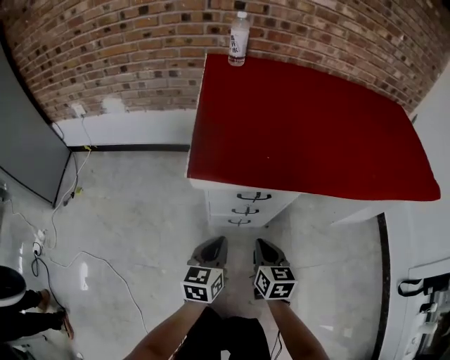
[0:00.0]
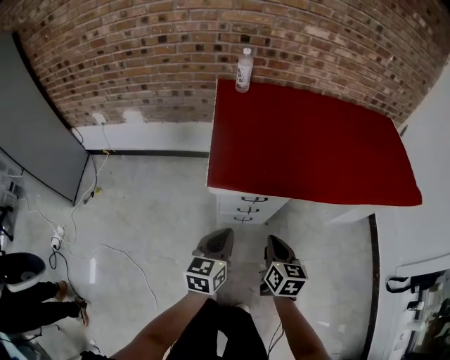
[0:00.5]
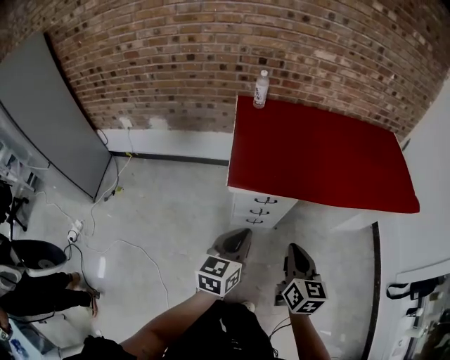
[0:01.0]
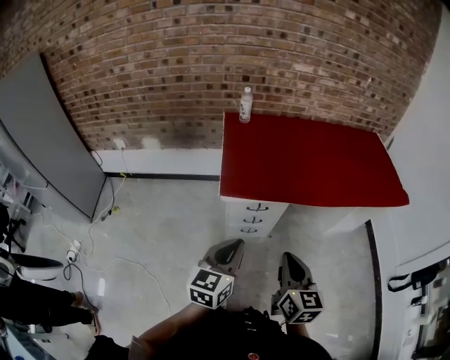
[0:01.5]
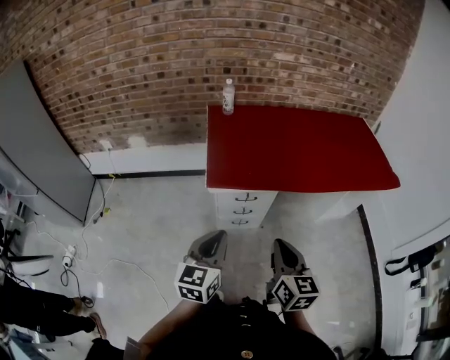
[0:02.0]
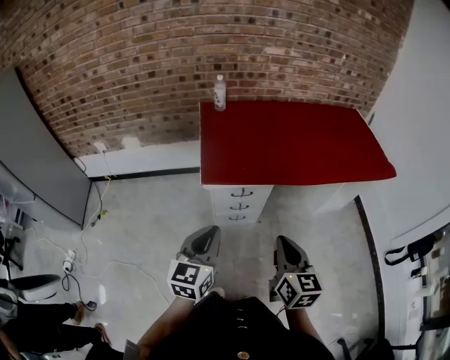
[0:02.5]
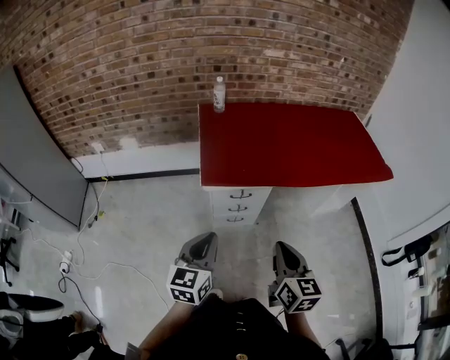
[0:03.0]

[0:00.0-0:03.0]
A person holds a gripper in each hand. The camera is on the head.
0:00.0 to 0:01.5: The right gripper is displaced upward and backward by some 40 cm. Meanwhile the left gripper is displaced upward by approximately 40 cm.
0:01.5 to 0:03.0: There are only small adjustments of the grippers.

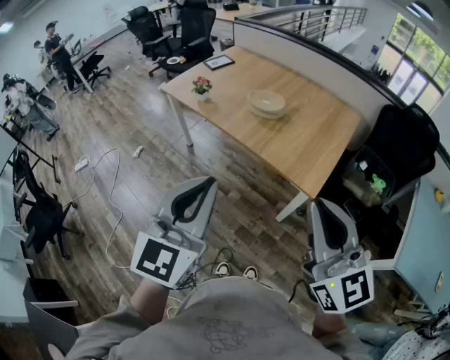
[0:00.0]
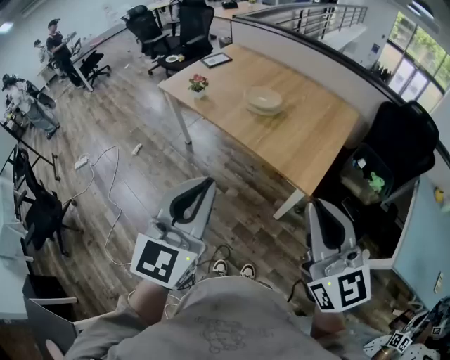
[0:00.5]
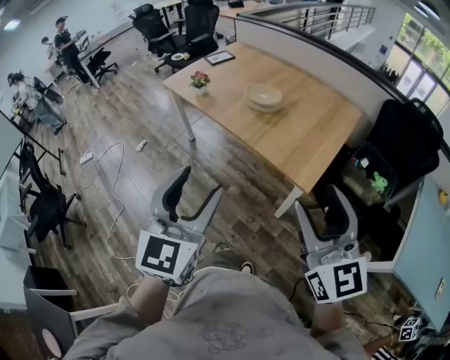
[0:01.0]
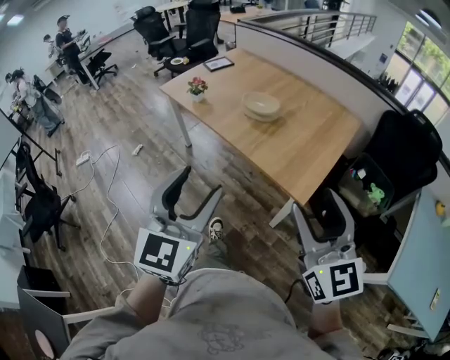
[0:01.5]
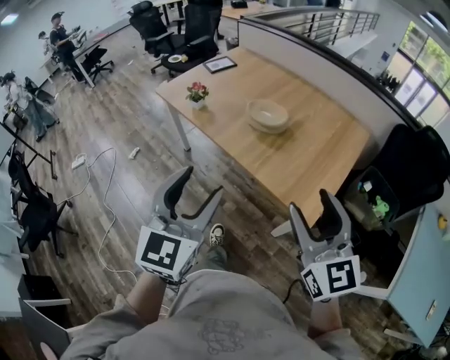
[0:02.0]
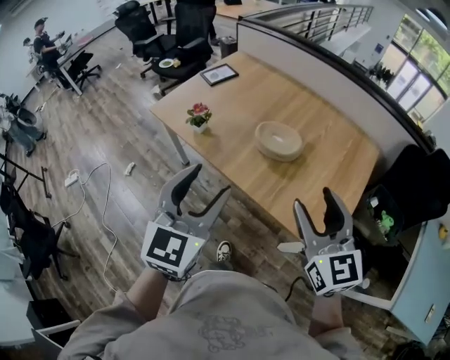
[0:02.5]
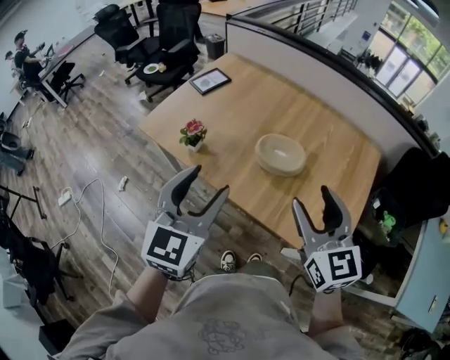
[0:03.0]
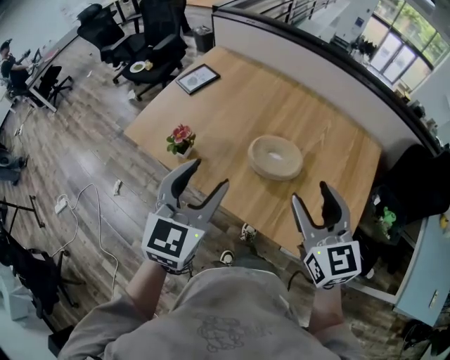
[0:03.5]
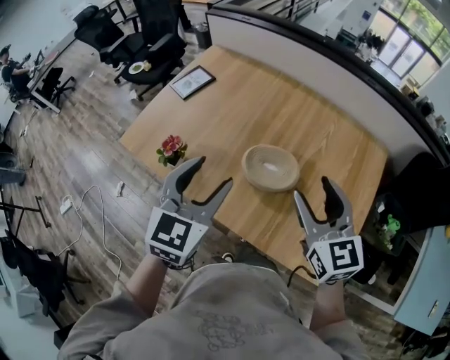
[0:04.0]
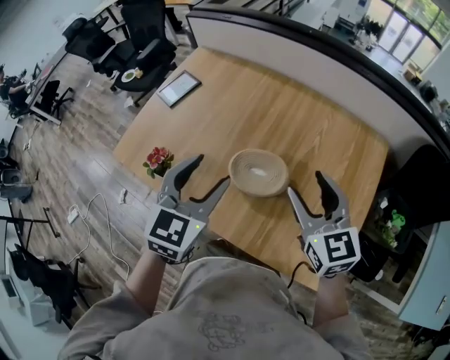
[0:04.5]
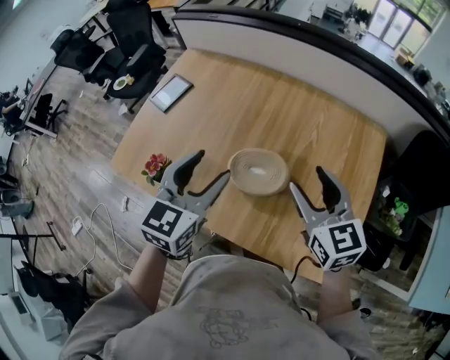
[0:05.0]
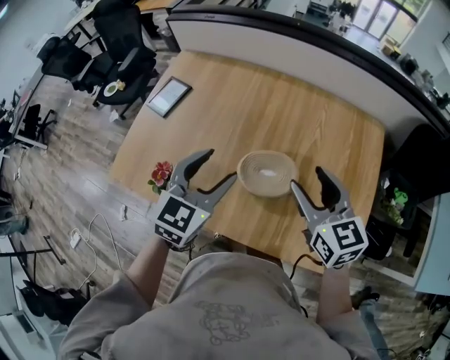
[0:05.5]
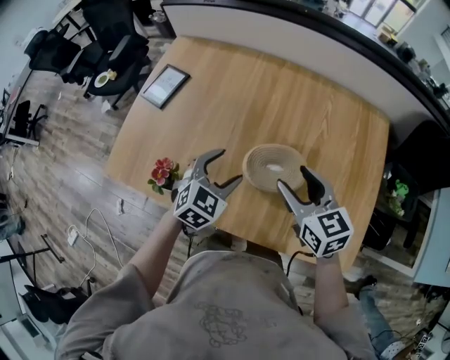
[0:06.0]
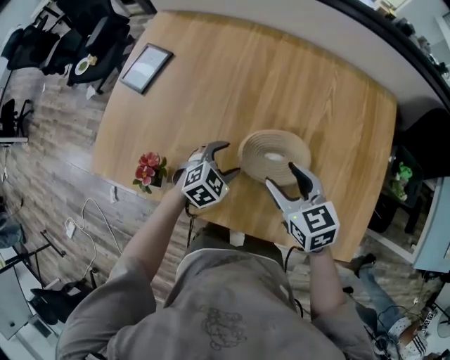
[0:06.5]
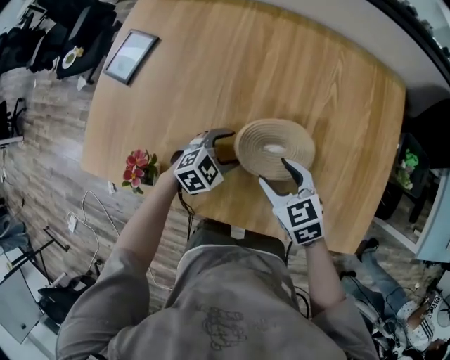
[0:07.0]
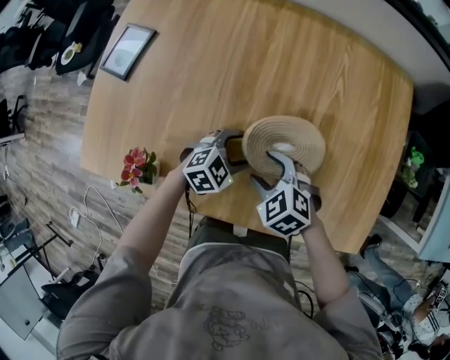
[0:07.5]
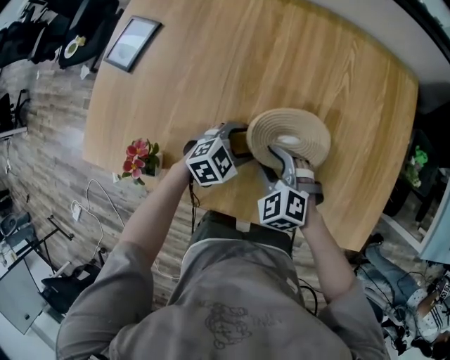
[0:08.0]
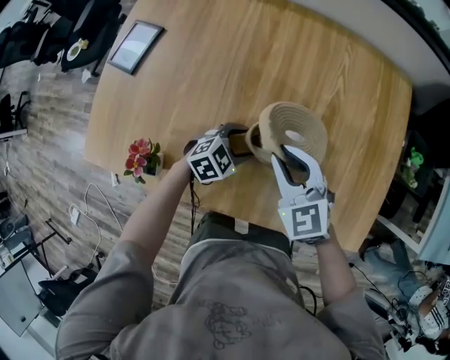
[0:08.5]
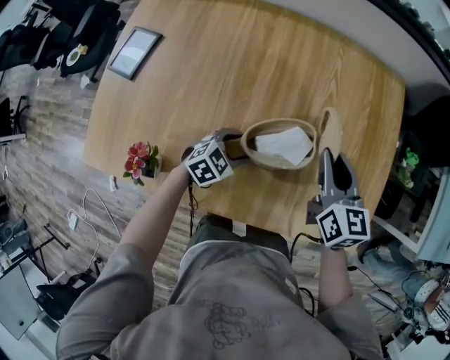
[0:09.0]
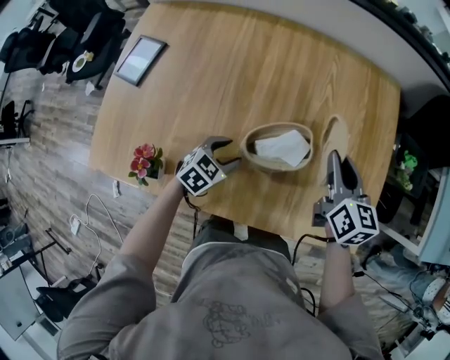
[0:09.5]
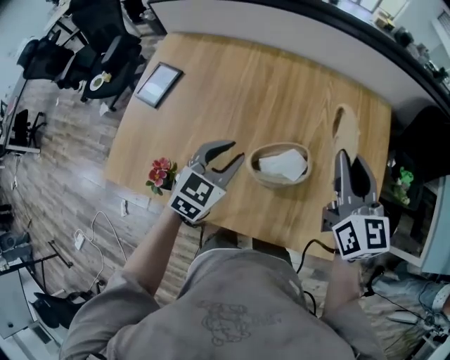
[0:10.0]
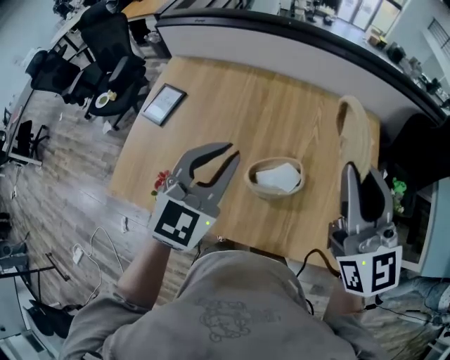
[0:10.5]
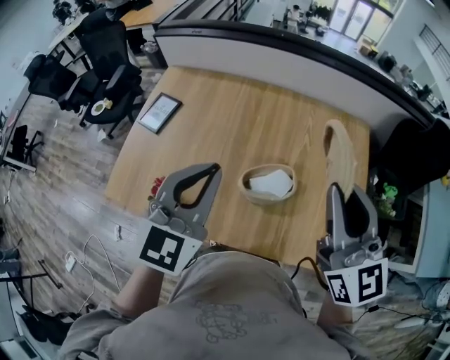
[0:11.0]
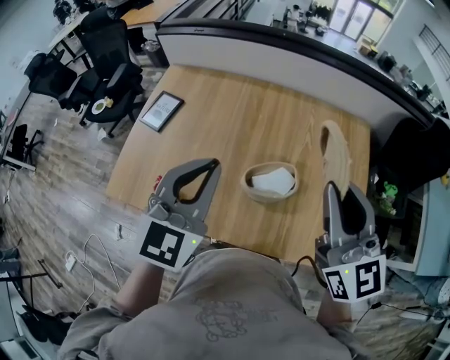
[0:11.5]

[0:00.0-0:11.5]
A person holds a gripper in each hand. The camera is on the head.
0:00.0 to 0:02.0: The right gripper is displaced forward and downward by some 20 cm, and opens. Meanwhile the left gripper heads forward, covering roughly 15 cm, and opens its fingers.
0:02.0 to 0:04.0: The two grippers travel together, forward, some 40 cm. The left gripper turns by roughly 20 degrees.
0:04.0 to 0:06.0: The left gripper heads downward and forward, covering approximately 20 cm, and swivels about 30 degrees. The right gripper moves downward, forward and to the left, some 15 cm.
0:06.0 to 0:07.5: Both grippers travel together downward, about 20 cm. The left gripper rotates roughly 30 degrees, while the right gripper angles its fingers downward, by roughly 30 degrees.
0:07.5 to 0:09.5: The right gripper heads to the right, upward and forward, covering about 25 cm, tips its fingers upward by approximately 30 degrees, and closes.
0:09.5 to 0:11.5: The right gripper shifts some 30 cm upward and backward, and turns by about 30 degrees; the left gripper goes about 40 cm upward, tips its fingers upward by about 40 degrees, and closes up.

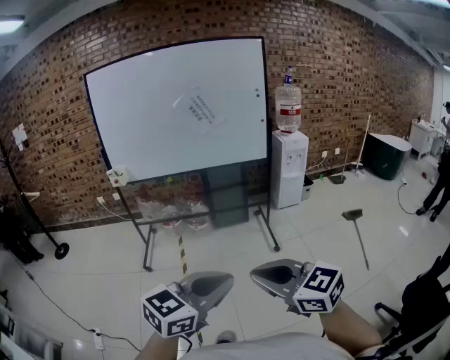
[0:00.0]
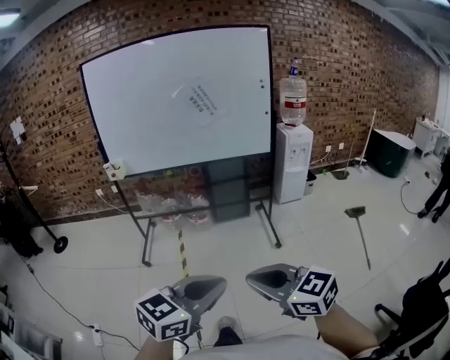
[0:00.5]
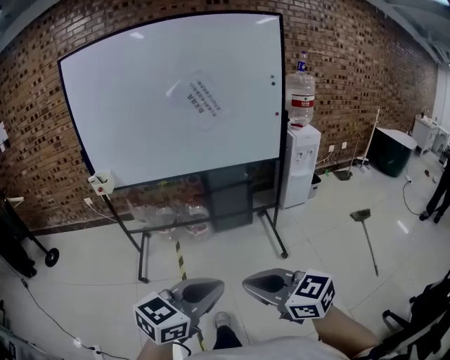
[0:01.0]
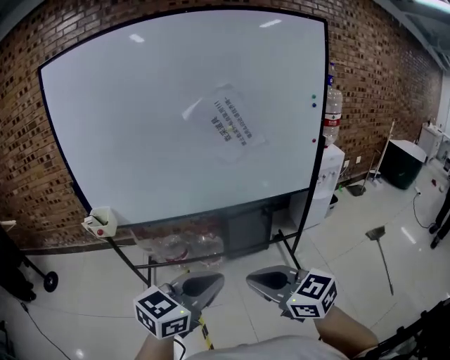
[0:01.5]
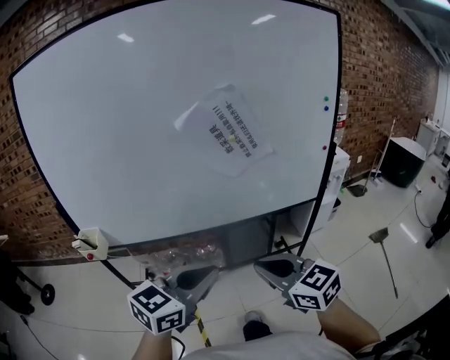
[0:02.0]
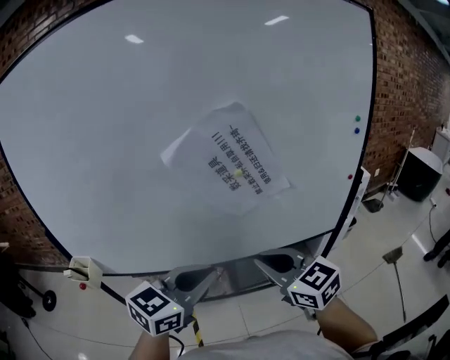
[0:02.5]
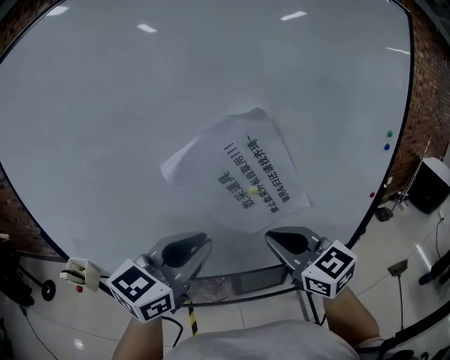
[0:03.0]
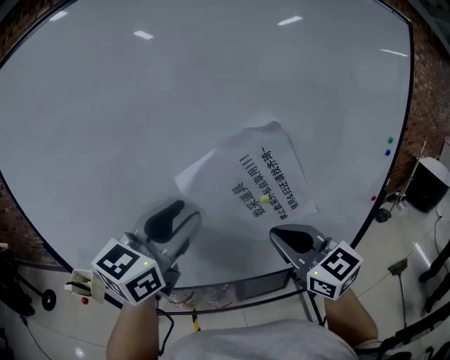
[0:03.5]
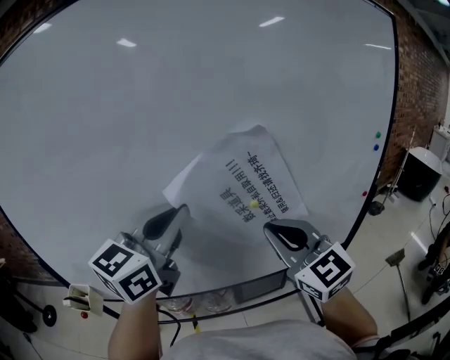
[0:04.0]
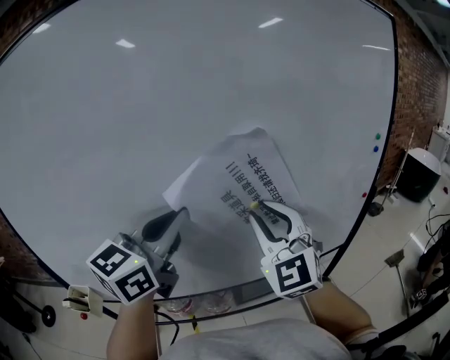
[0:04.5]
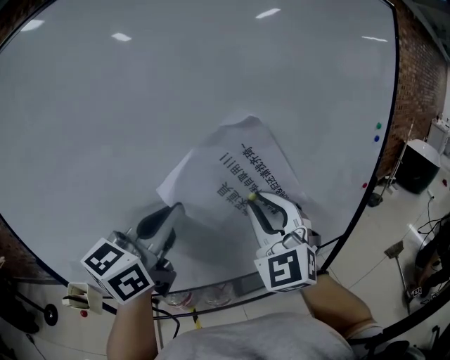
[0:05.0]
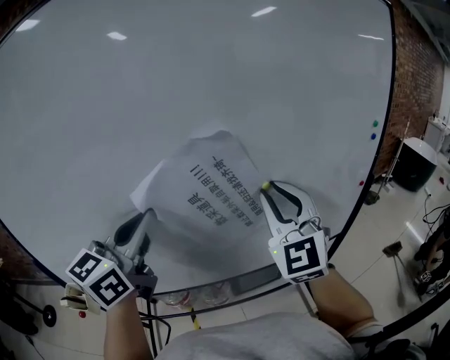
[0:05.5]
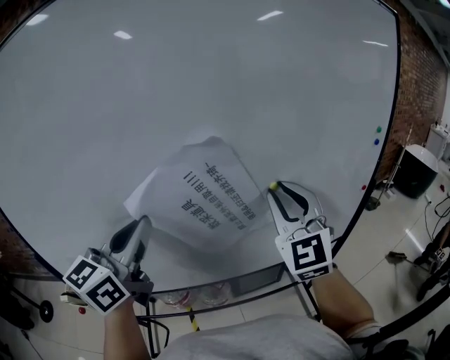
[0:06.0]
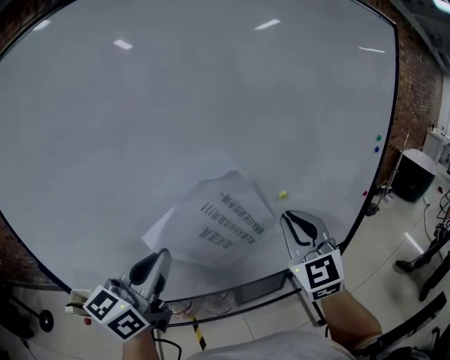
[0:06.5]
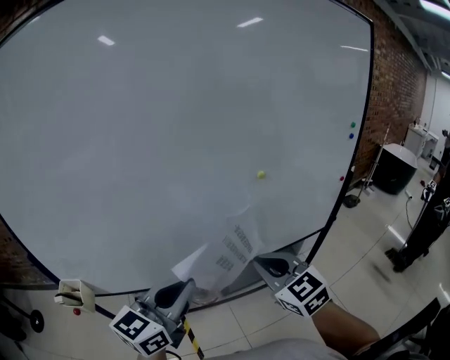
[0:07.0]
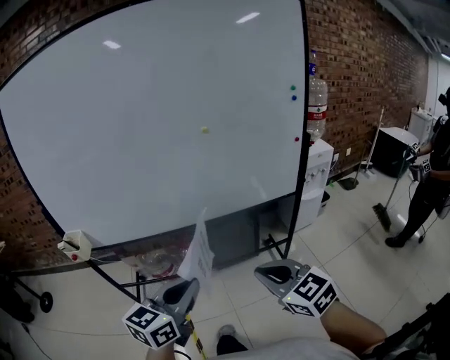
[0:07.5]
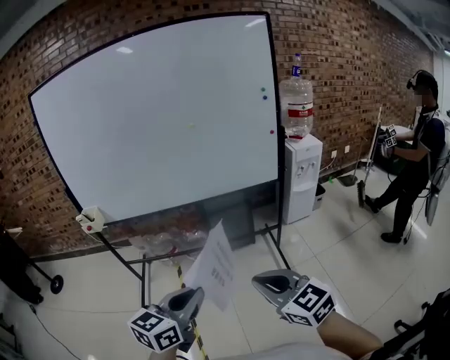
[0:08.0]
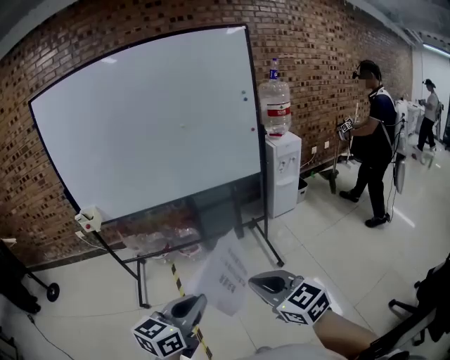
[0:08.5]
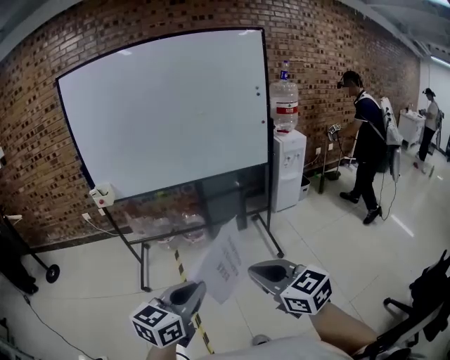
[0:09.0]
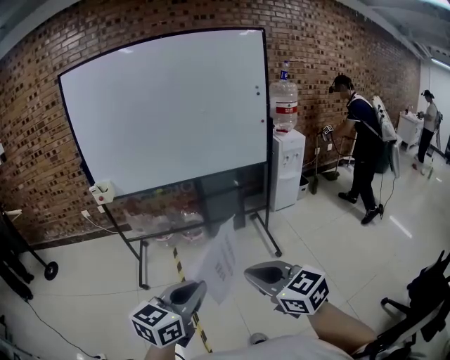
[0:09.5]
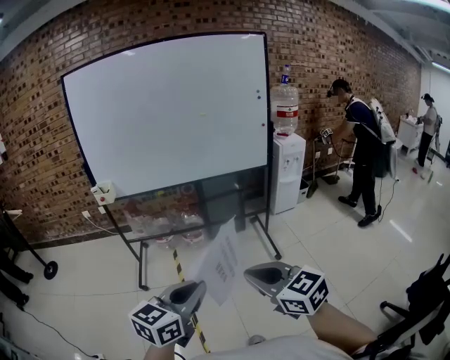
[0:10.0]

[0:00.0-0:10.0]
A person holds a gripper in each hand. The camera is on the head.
0:00.0 to 0:02.0: The two grippers travel together, forward, approximately 70 cm.
0:02.0 to 0:04.0: The two grippers go roughly 35 cm forward and upward. The left gripper rotates some 20 degrees, and opens, then closes once more. The right gripper swivels some 30 degrees.
0:04.0 to 0:06.0: The right gripper goes approximately 15 cm to the right, forward and upward, and rotates roughly 30 degrees.
0:06.0 to 0:08.0: The pair of grippers is taken backward and to the right, approximately 60 cm. The right gripper rotates approximately 50 degrees. Meanwhile the left gripper changes its angle by approximately 20 degrees.
0:08.0 to 0:10.0: The grippers both shift backward by roughly 25 cm.

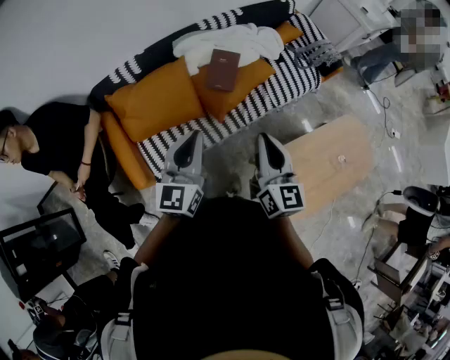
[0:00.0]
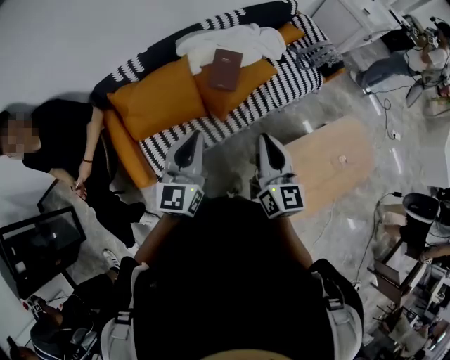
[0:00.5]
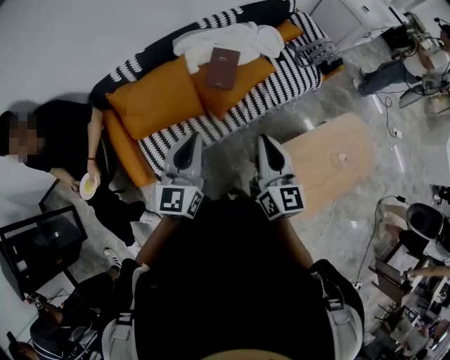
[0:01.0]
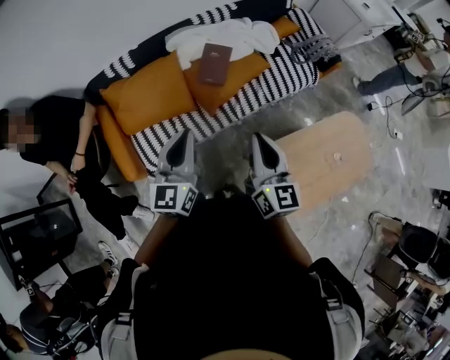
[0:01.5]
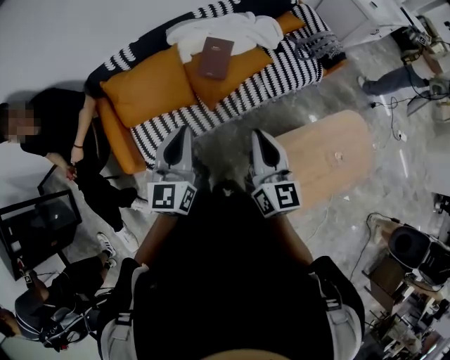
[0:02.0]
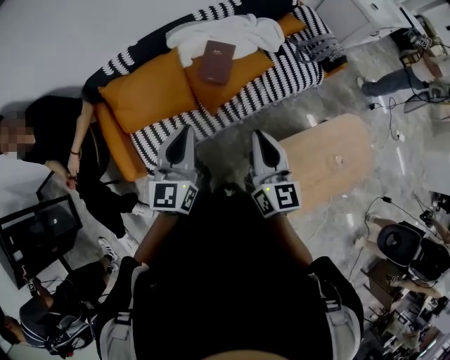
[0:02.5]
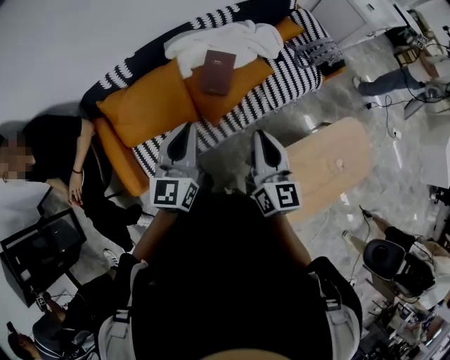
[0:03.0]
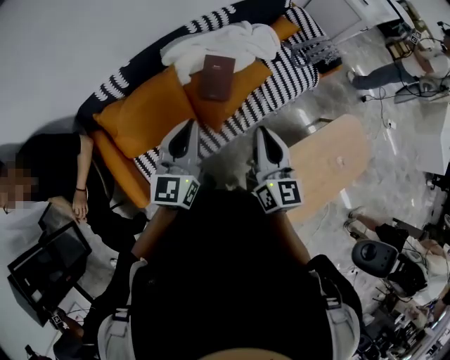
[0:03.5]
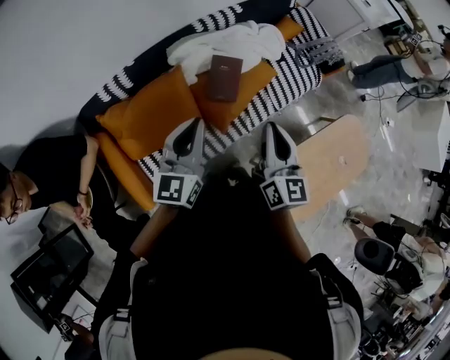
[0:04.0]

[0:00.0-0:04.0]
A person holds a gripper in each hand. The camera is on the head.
0:00.0 to 0:02.0: Both grippers move to the right, approximately 5 cm.
0:02.0 to 0:04.0: The two grippers go approximately 25 cm forward and to the left.
